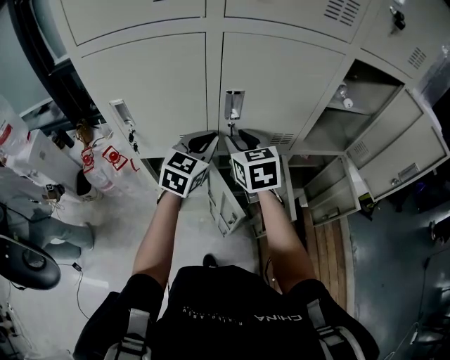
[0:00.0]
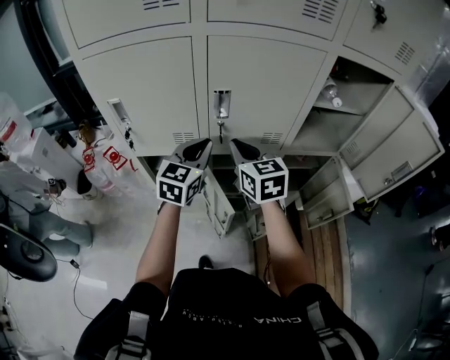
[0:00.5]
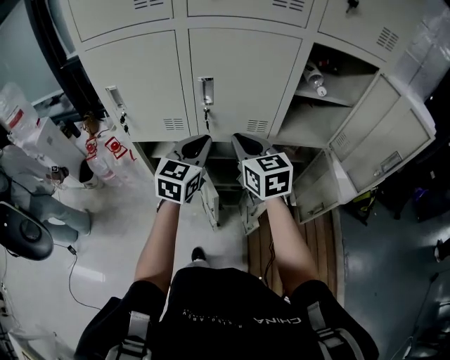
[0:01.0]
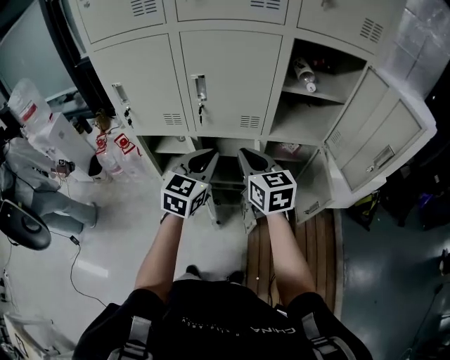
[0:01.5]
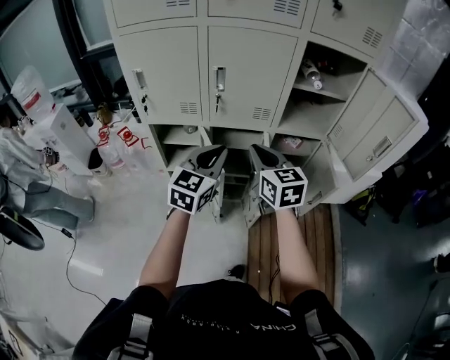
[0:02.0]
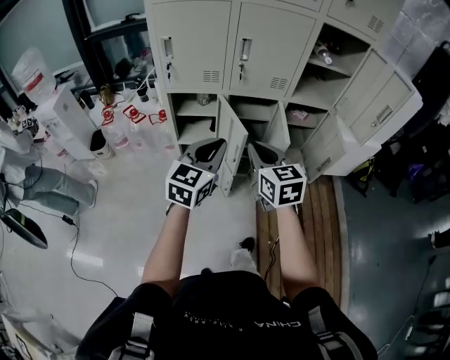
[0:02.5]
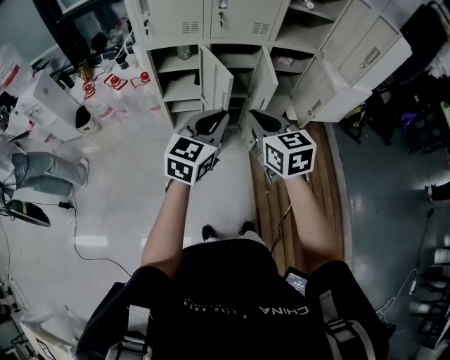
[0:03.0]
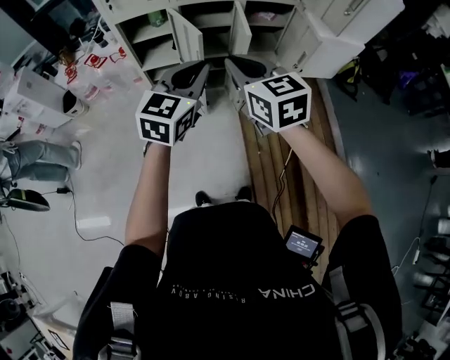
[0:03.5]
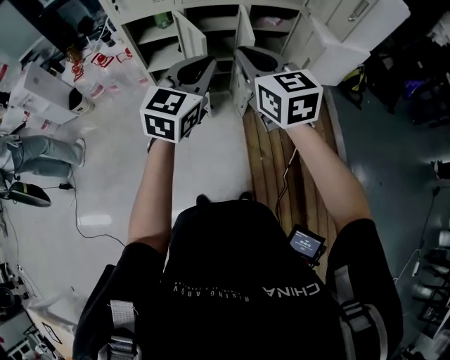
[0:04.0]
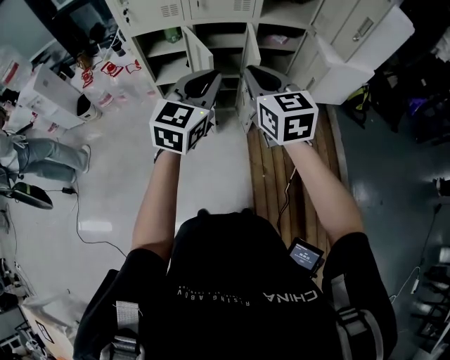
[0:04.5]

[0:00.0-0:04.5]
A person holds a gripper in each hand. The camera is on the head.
0.0 to 2.0 s: The grippers both shift backward and to the right by about 25 cm. The right gripper closes up.
2.0 to 4.5 s: Both grippers travel together backward, about 25 cm.

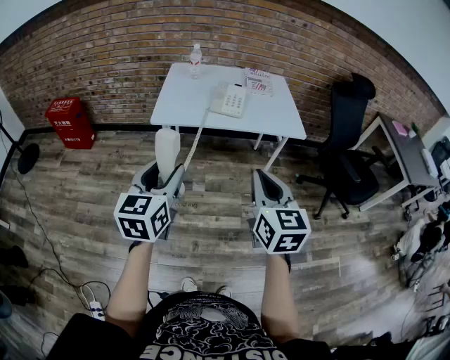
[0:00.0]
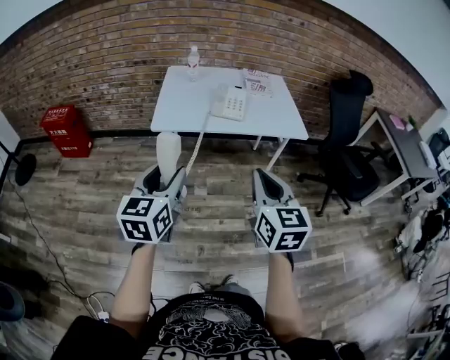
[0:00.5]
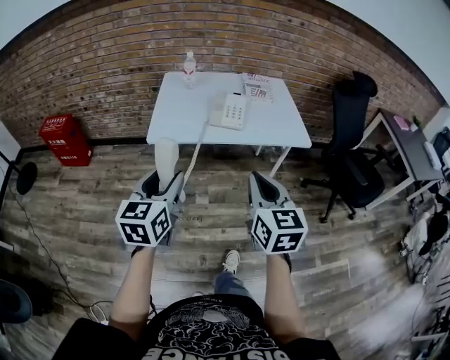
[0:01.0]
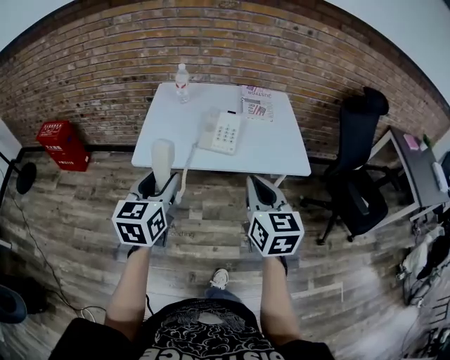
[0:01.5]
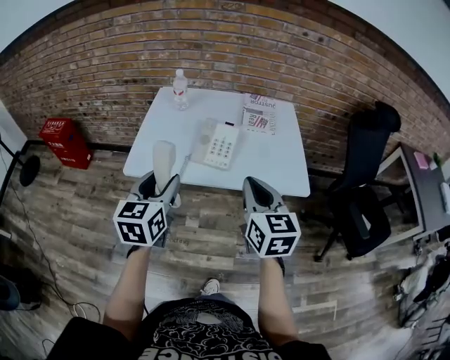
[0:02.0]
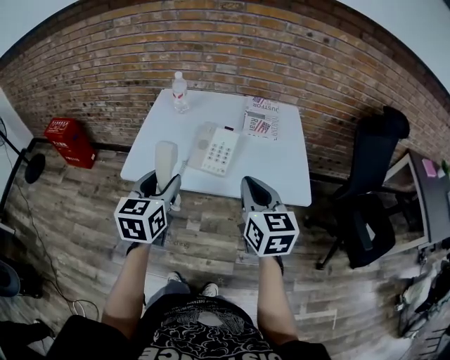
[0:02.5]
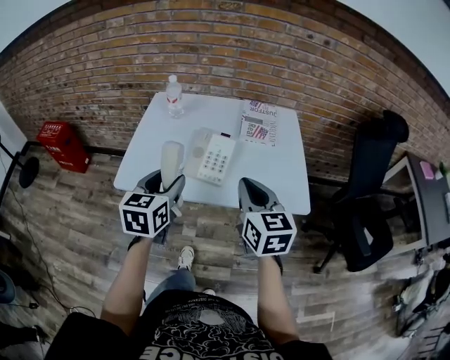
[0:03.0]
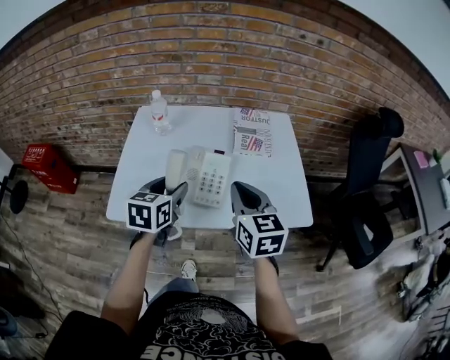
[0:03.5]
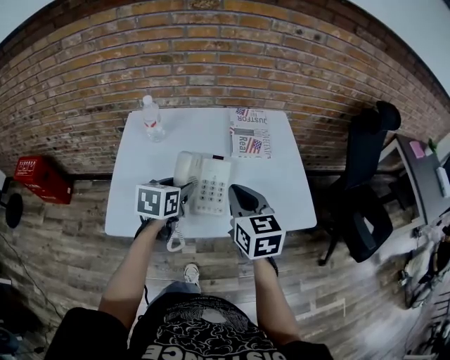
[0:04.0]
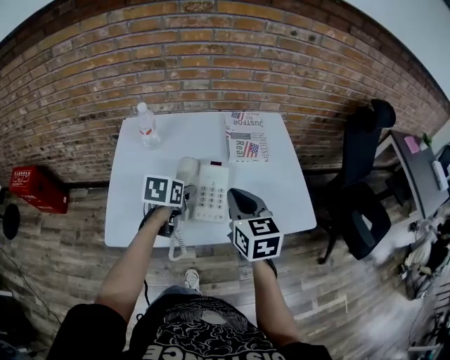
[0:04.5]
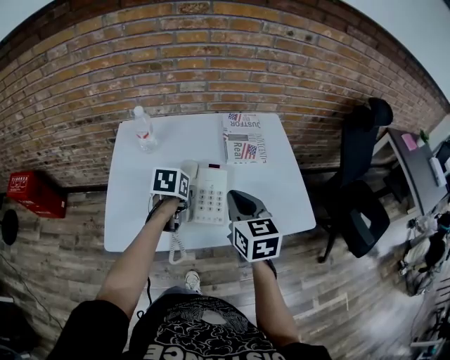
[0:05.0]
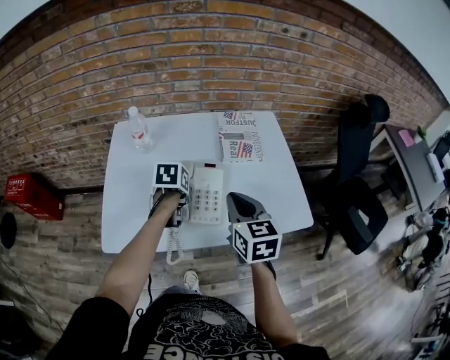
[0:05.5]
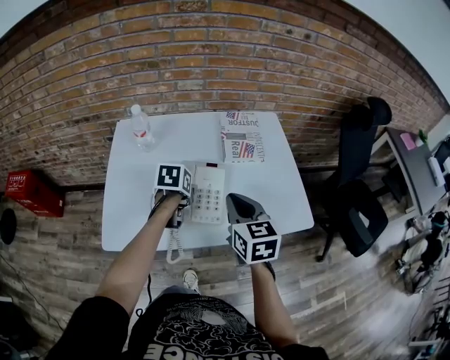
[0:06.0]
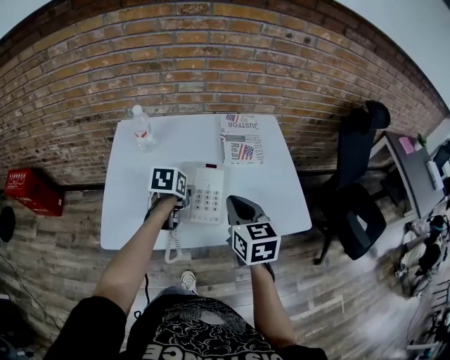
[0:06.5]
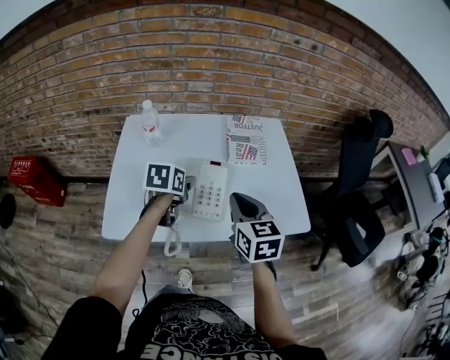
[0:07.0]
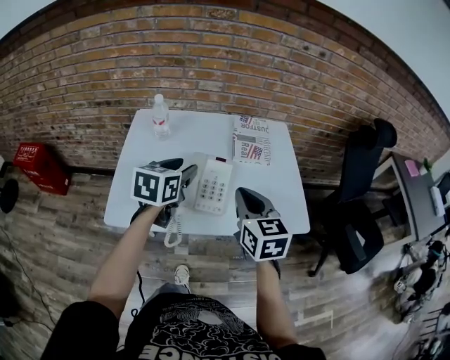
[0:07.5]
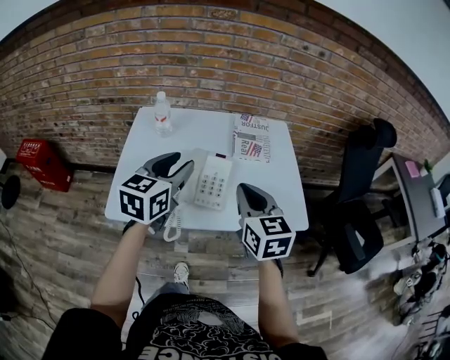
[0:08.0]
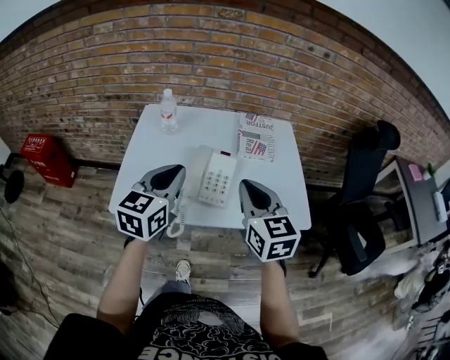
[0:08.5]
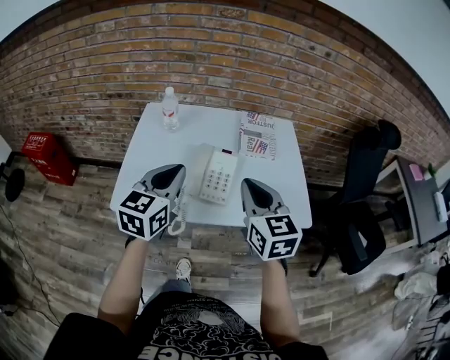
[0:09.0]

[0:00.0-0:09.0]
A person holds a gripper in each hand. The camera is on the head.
0.0 to 2.0 s: The two grippers go about 30 cm forward.
2.0 to 4.5 s: The right gripper is displaced forward by some 20 cm. Meanwhile the left gripper travels forward and downward by some 35 cm, and angles its fingers downward, by some 30 degrees.
4.5 to 7.0 s: There are only small adjustments of the grippers.
7.0 to 9.0 s: The right gripper travels upward and backward by roughly 10 cm. The left gripper goes about 20 cm upward and backward, tilts its fingers roughly 30 degrees upward, and closes.

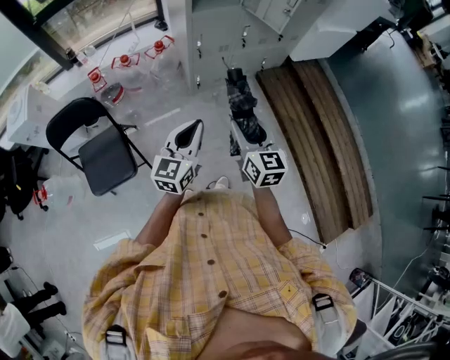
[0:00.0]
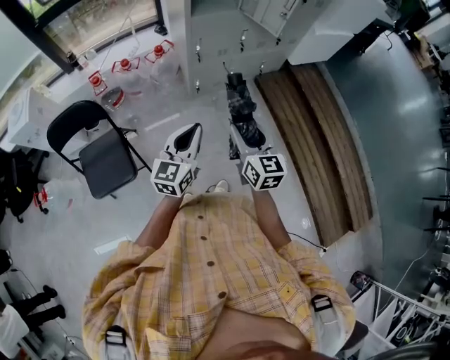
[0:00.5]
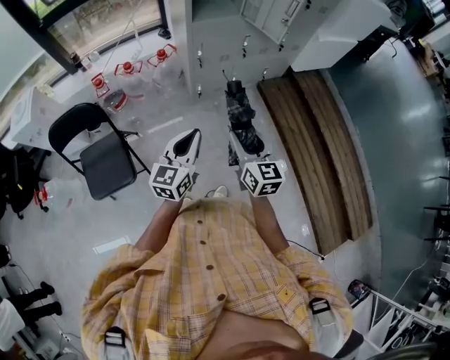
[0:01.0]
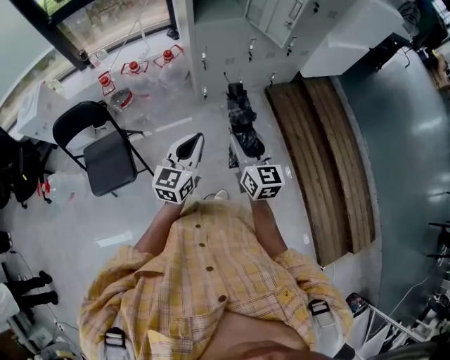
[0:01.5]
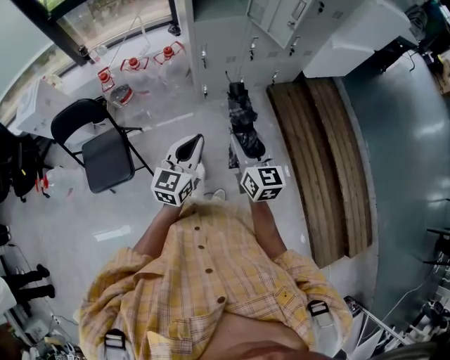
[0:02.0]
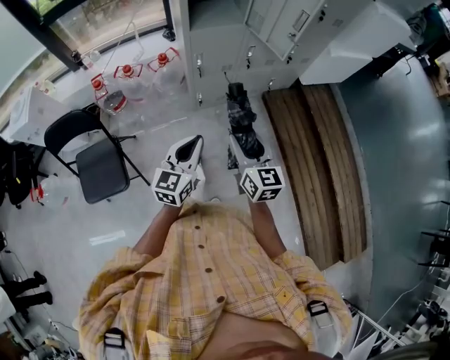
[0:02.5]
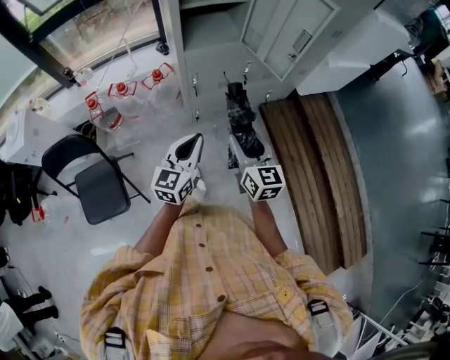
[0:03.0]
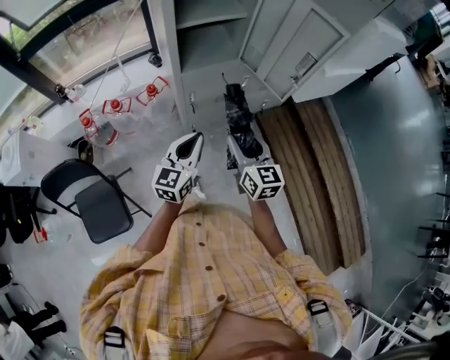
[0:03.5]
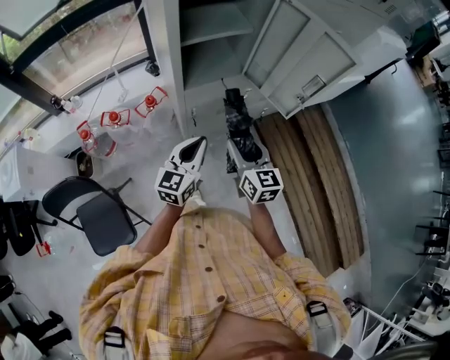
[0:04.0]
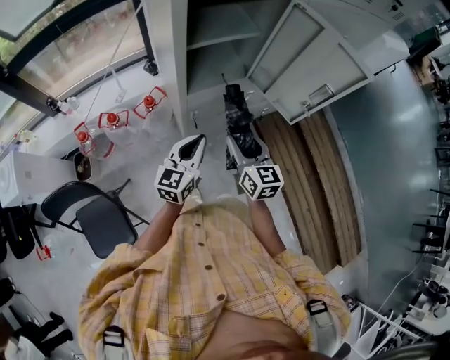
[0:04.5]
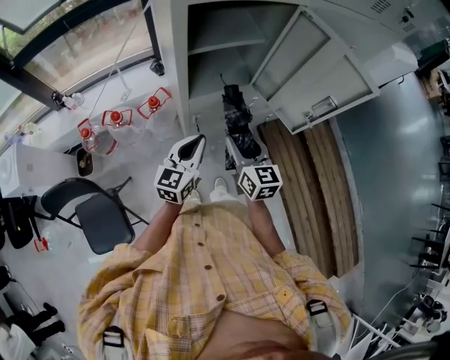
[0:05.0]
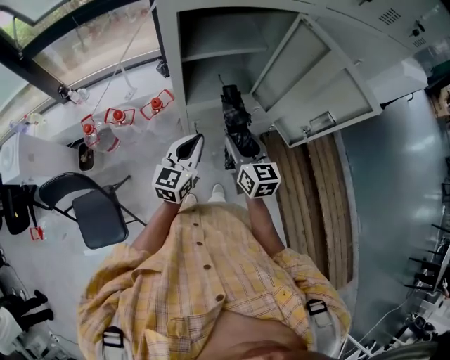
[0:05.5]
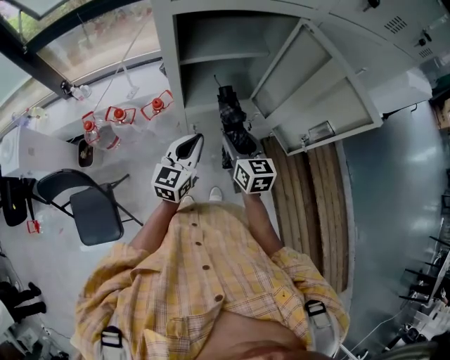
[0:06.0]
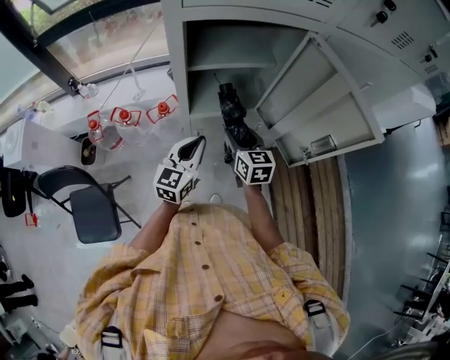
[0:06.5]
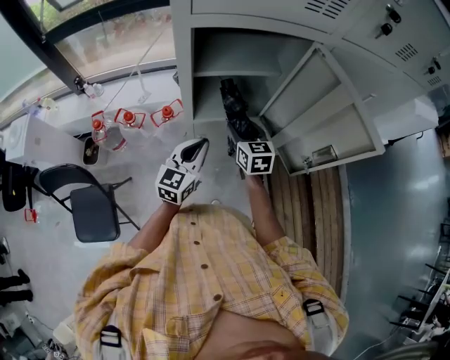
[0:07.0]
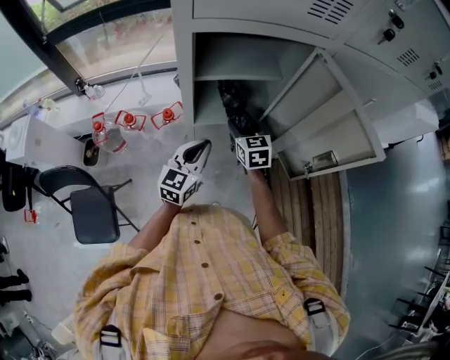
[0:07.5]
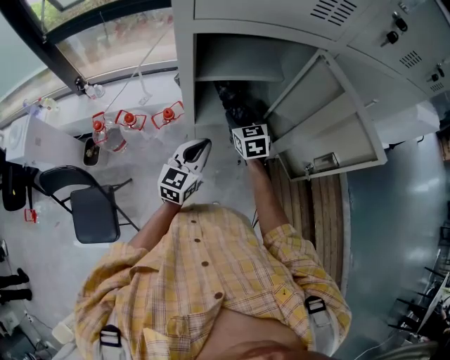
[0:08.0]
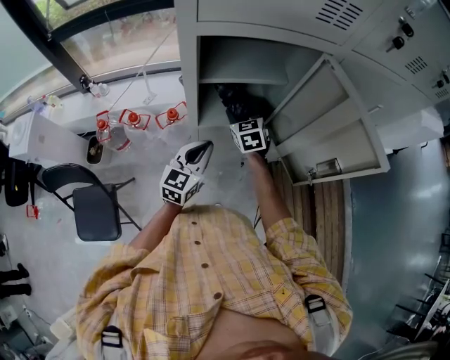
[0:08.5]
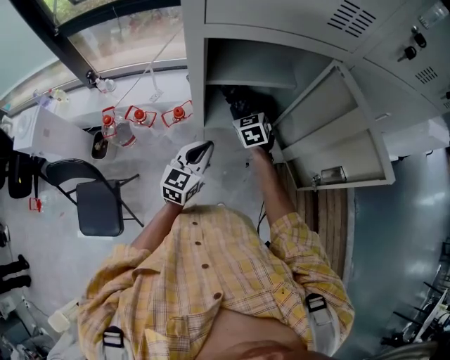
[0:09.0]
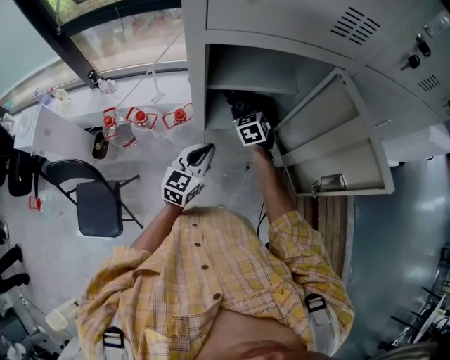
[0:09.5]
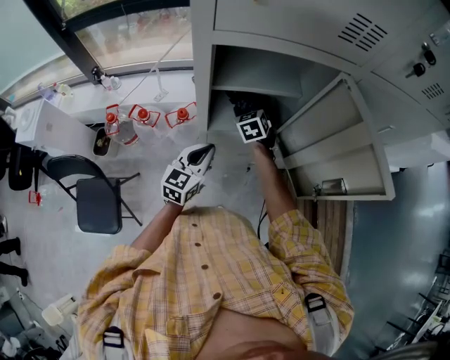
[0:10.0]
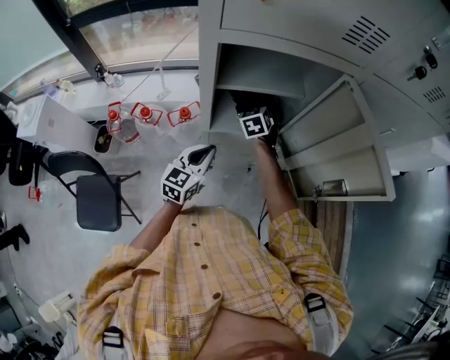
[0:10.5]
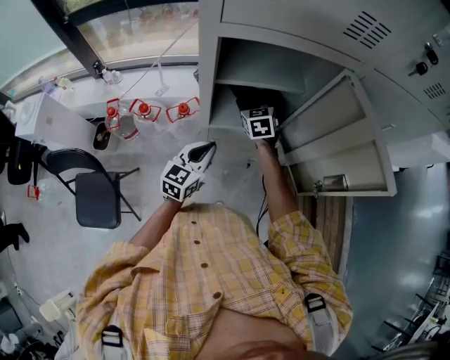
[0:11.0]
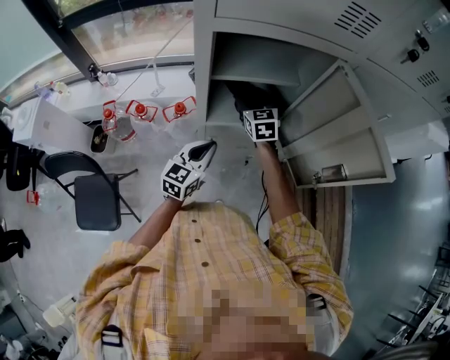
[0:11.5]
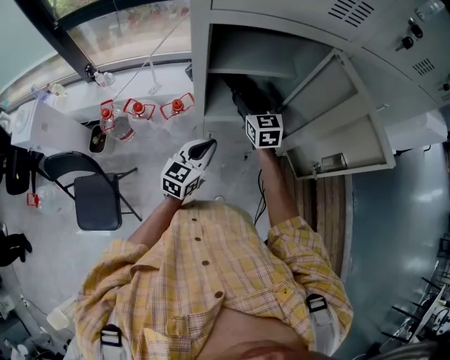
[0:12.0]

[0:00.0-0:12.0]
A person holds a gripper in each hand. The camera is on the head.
0.0 to 2.0 s: The grippers both shift to the right by roughly 5 cm.
2.0 to 4.0 s: Both grippers travel together forward, roughly 35 cm.
4.0 to 6.0 s: Both grippers travel together forward, some 10 cm.
6.0 to 8.0 s: The right gripper goes about 15 cm forward, and changes its angle by approximately 20 degrees.
8.0 to 10.0 s: The right gripper moves forward, roughly 10 cm.
10.0 to 12.0 s: The right gripper travels upward and backward by roughly 10 cm, and rotates approximately 30 degrees.

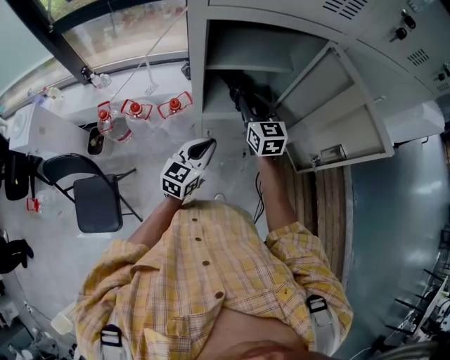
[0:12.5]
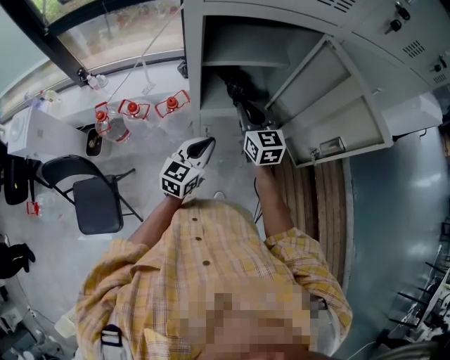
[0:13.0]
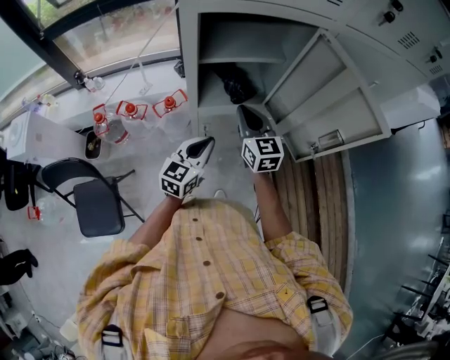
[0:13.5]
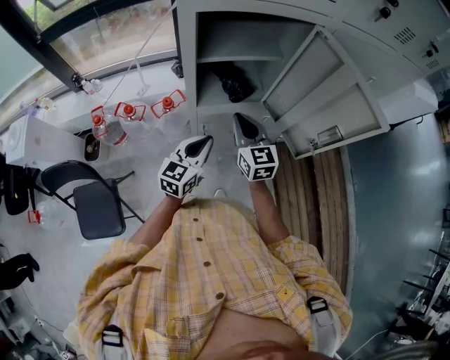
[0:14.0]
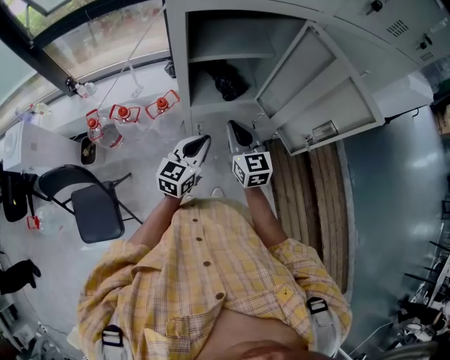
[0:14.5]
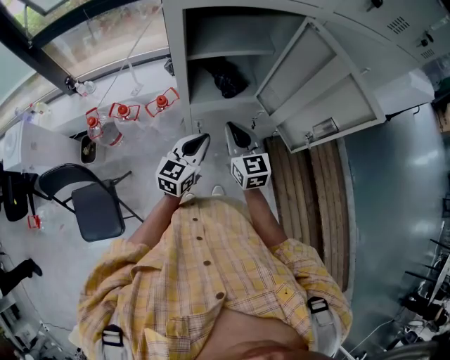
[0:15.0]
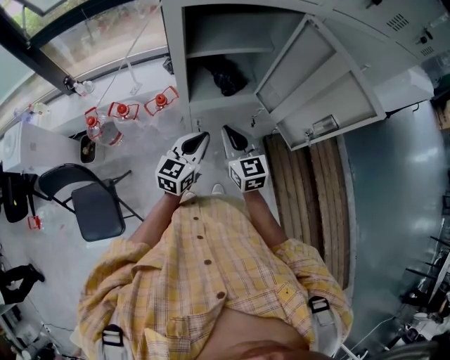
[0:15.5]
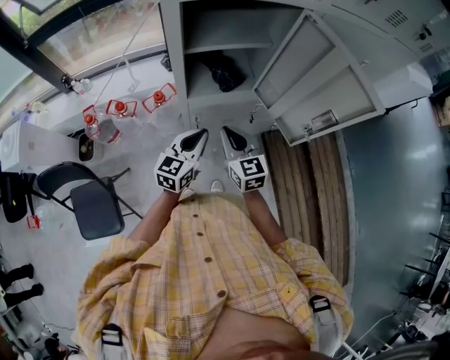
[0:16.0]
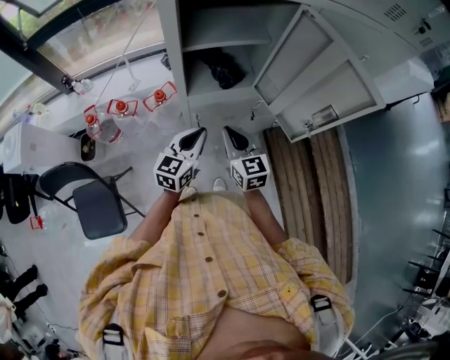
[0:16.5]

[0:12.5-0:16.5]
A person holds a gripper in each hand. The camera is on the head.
12.5 to 14.5 s: The right gripper is displaced backward by approximately 10 cm.
14.5 to 16.5 s: The right gripper shifts by roughly 5 cm.
